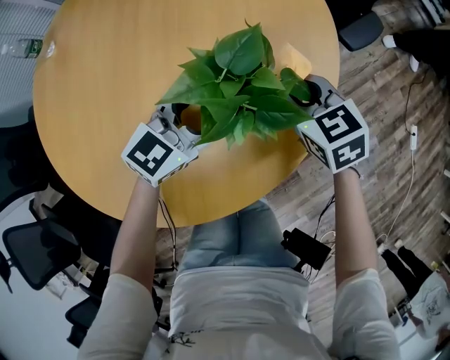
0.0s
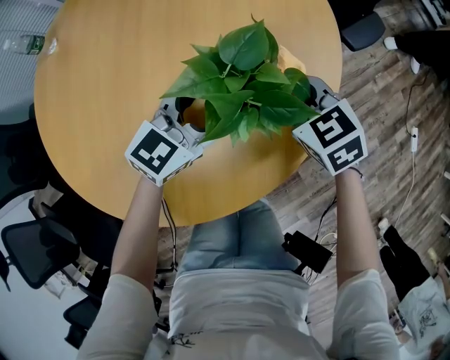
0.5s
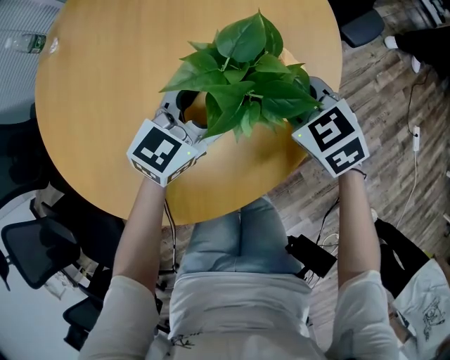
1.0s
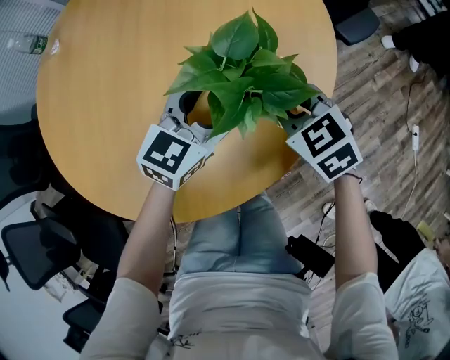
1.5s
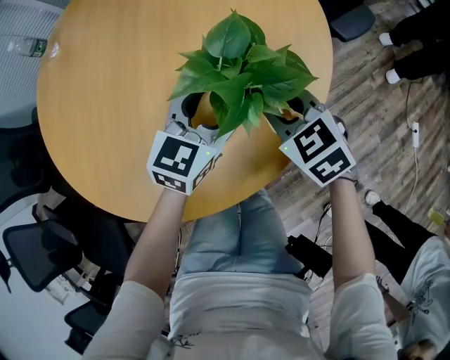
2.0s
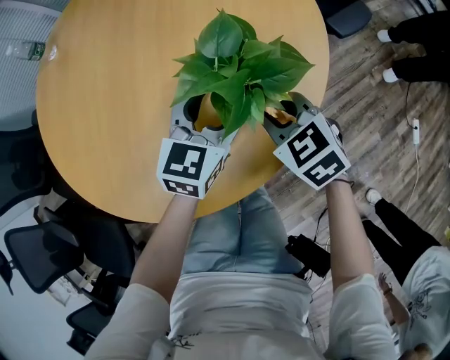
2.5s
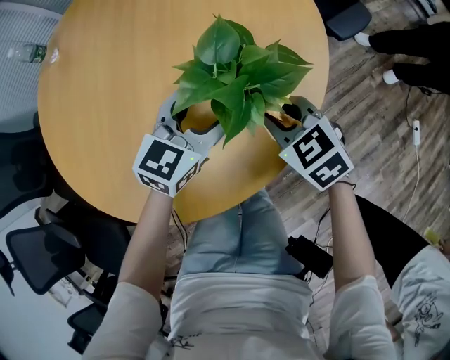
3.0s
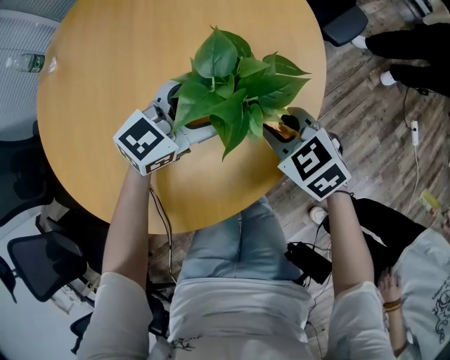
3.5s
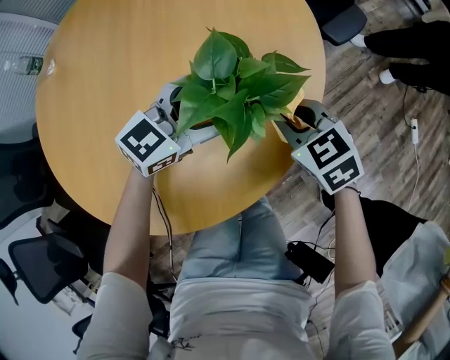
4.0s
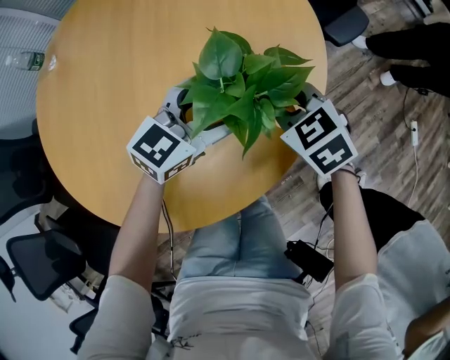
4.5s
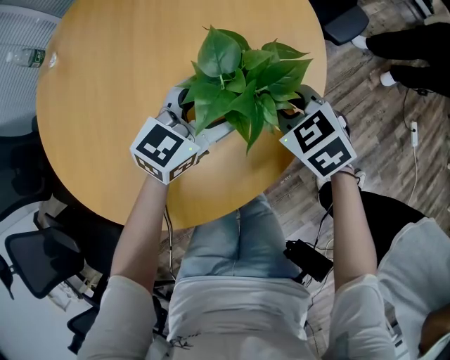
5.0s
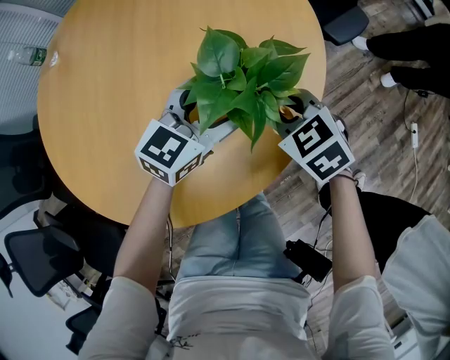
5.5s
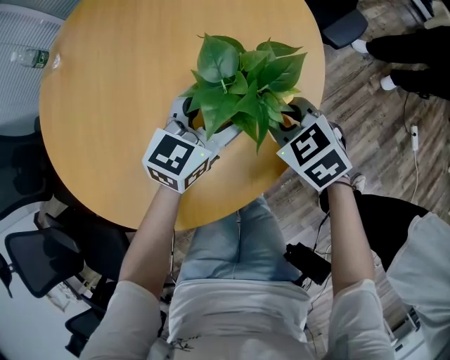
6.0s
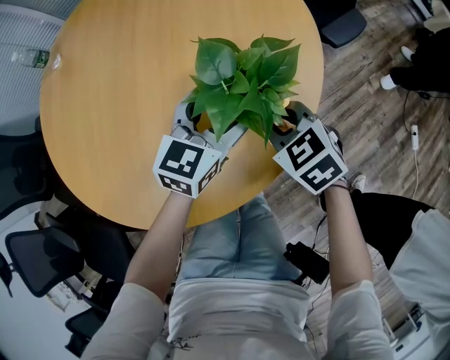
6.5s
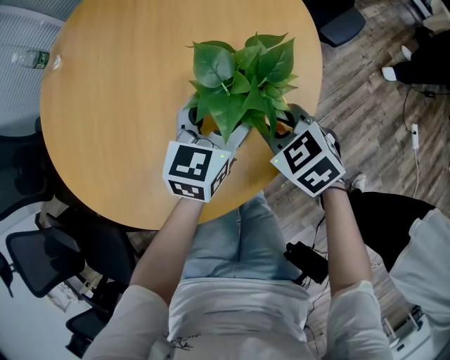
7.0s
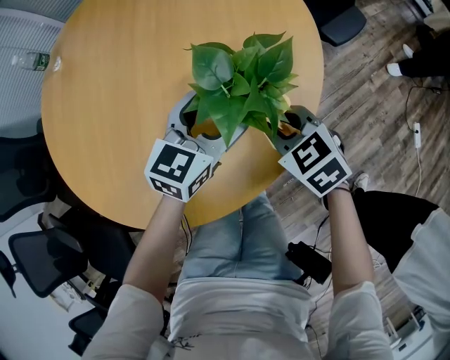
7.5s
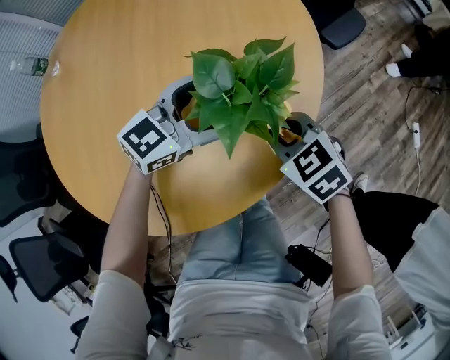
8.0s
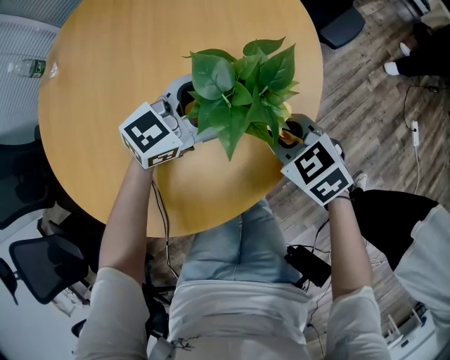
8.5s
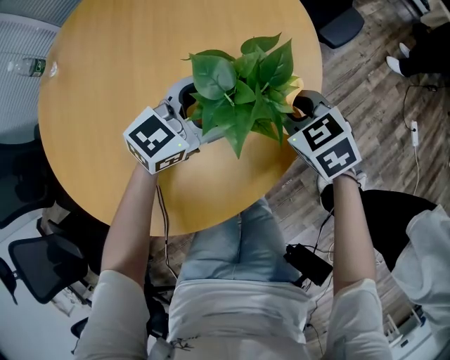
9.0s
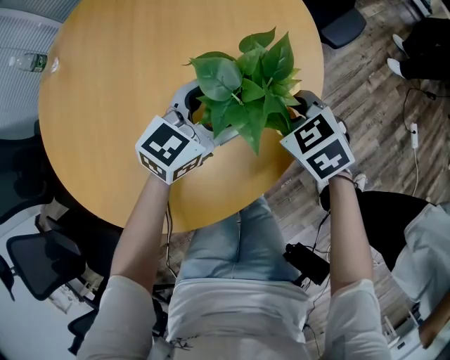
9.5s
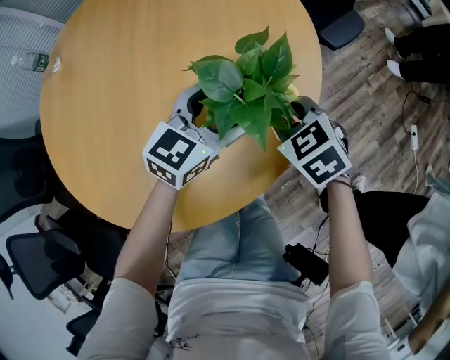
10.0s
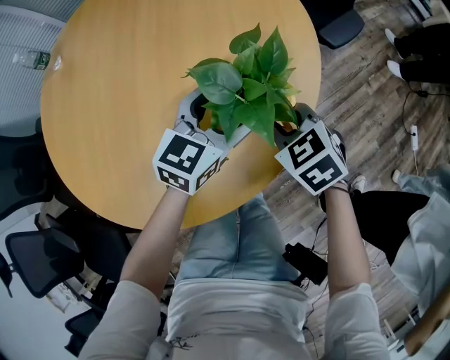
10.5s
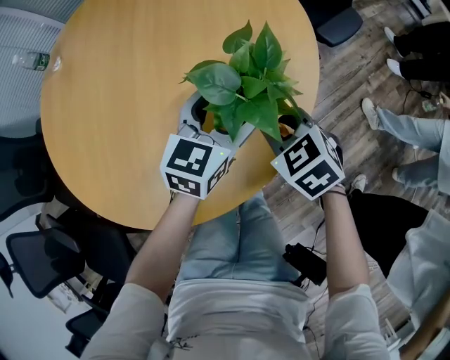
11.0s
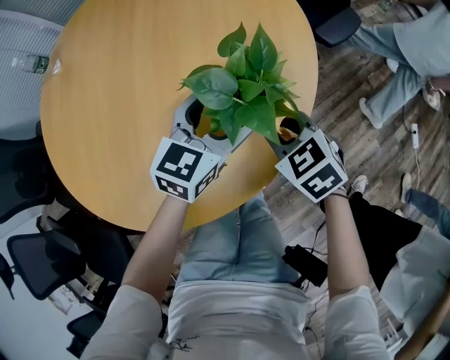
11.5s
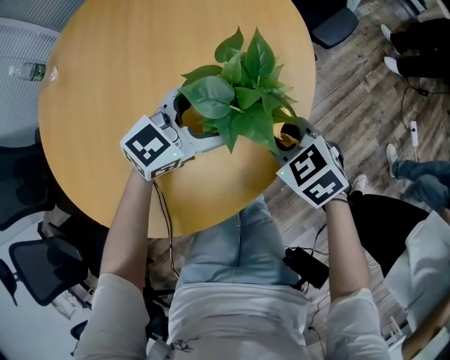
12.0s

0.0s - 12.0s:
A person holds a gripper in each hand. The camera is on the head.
0.0s - 2.0s: The right gripper shifts approximately 5 cm backward.
2.0s - 4.0s: The left gripper changes its angle by about 30 degrees.
4.0s - 6.0s: The grippers make only small movements.
6.0s - 8.0s: The left gripper swivels approximately 20 degrees.
8.0s - 10.0s: The grippers stay close to where they were, moving slightly.
10.0s - 12.0s: There are only small adjustments of the grippers.

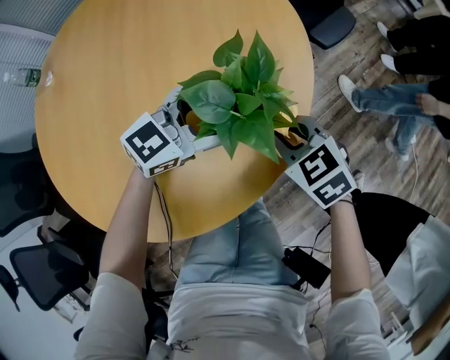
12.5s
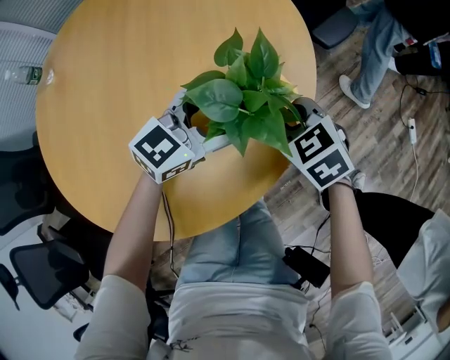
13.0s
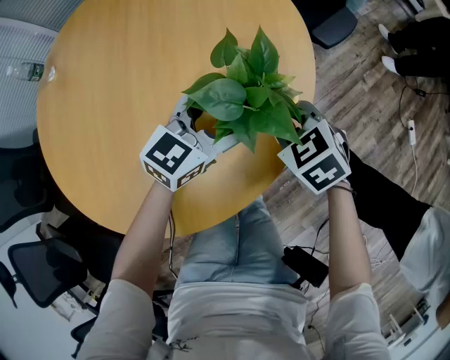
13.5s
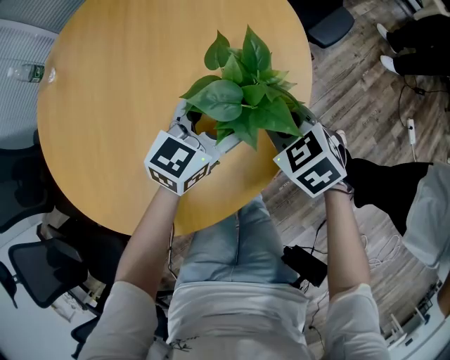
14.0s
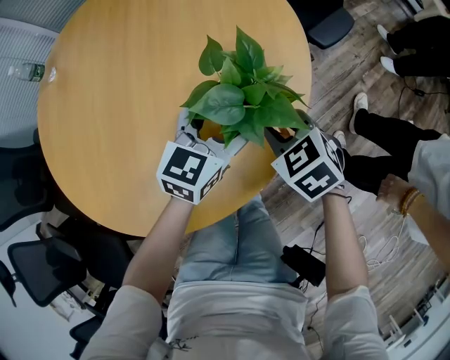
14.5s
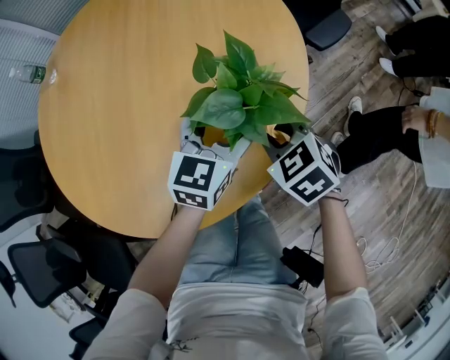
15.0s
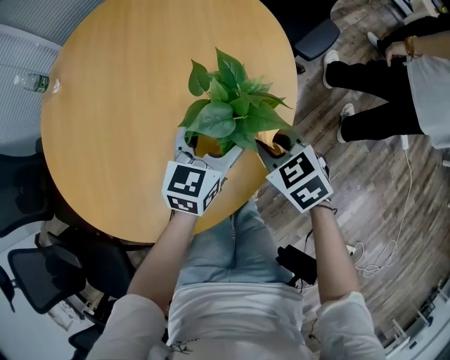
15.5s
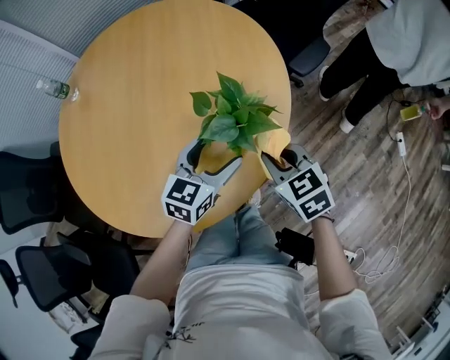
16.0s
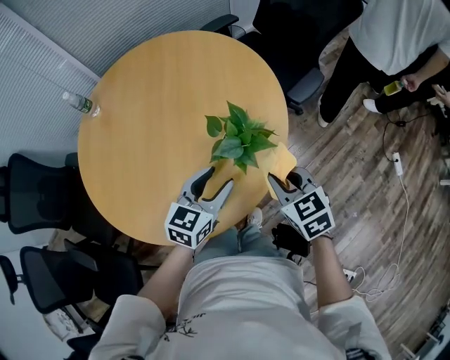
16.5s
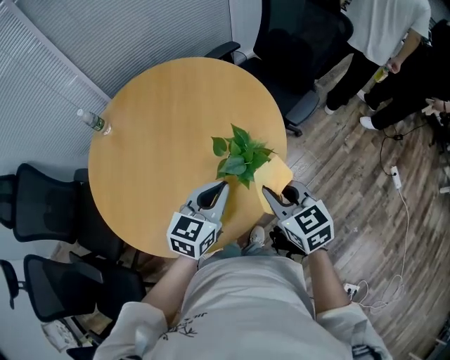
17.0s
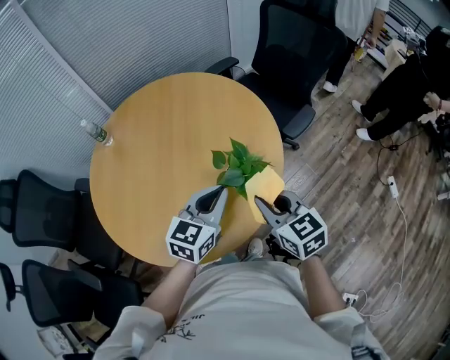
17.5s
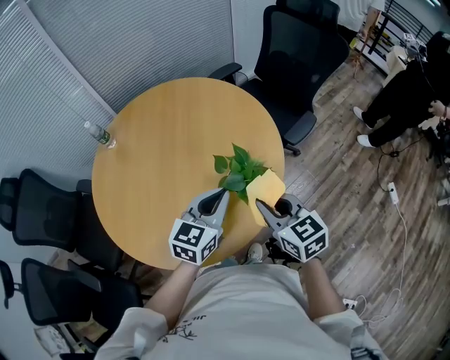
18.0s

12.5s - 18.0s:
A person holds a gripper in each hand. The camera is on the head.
12.5s - 14.5s: The left gripper changes its angle by roughly 30 degrees.
14.5s - 16.0s: The left gripper travels backward by some 5 cm, while the right gripper moves upward, some 10 cm.
16.0s - 18.0s: Both grippers move upward, about 15 cm. The left gripper closes its fingers.

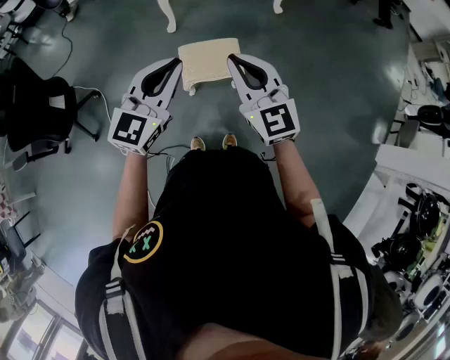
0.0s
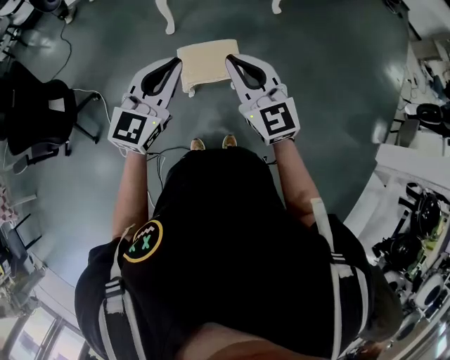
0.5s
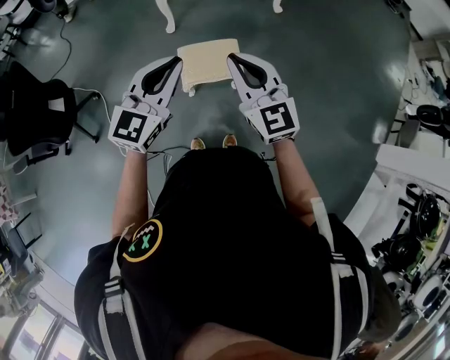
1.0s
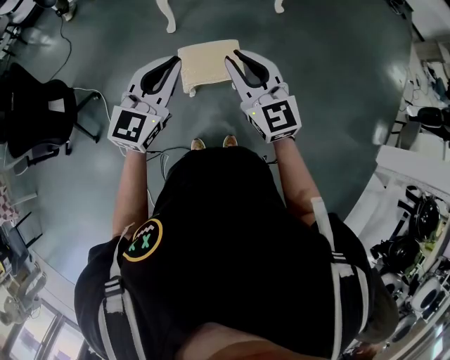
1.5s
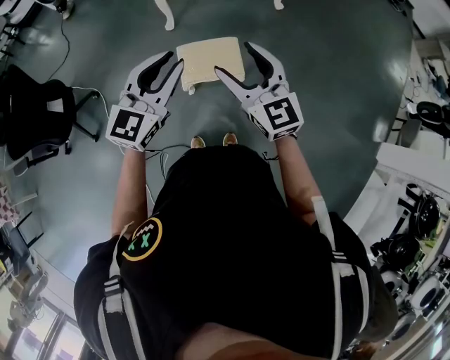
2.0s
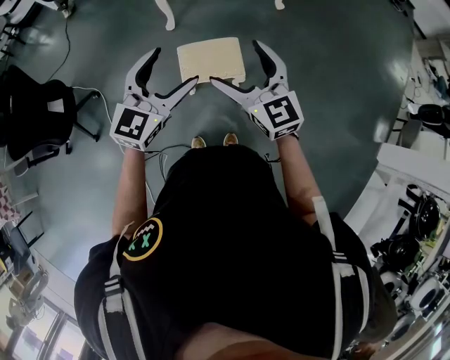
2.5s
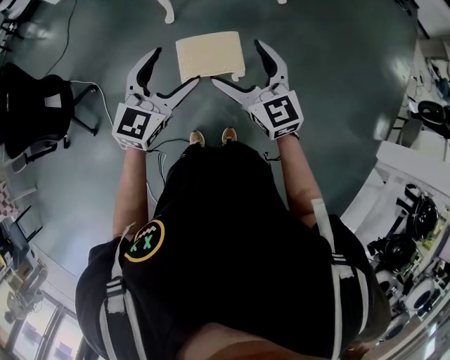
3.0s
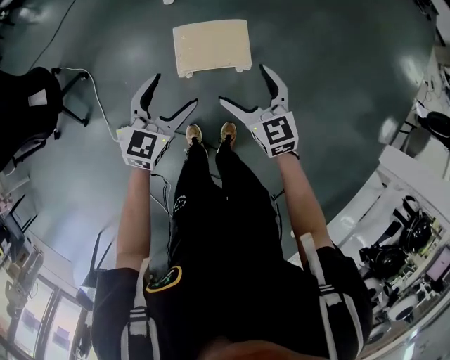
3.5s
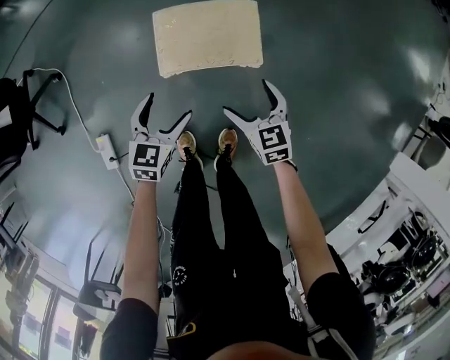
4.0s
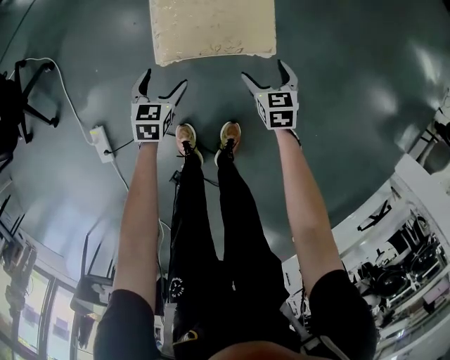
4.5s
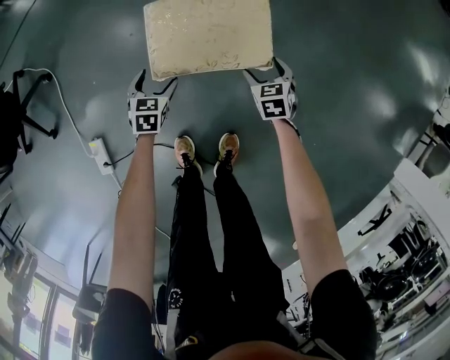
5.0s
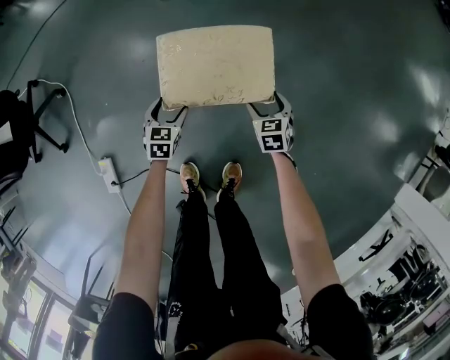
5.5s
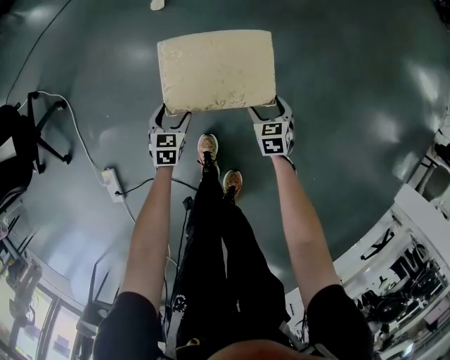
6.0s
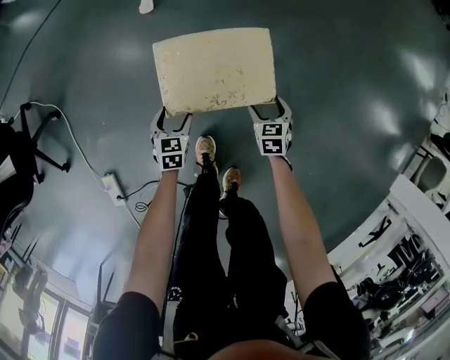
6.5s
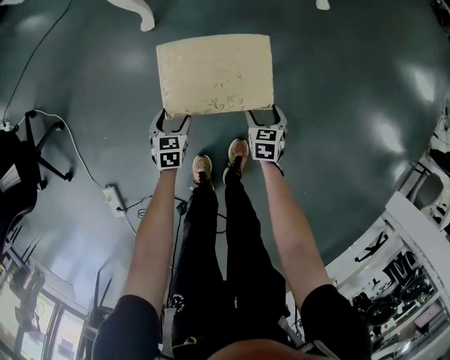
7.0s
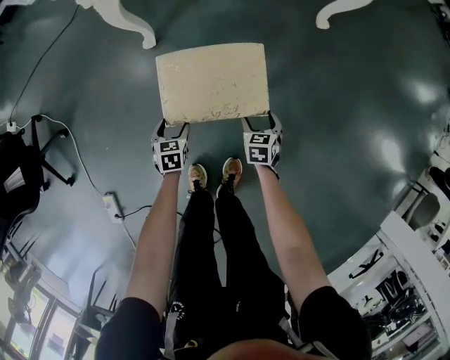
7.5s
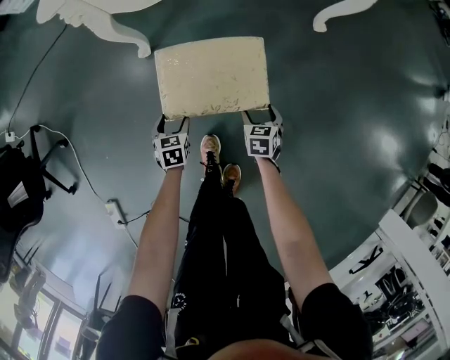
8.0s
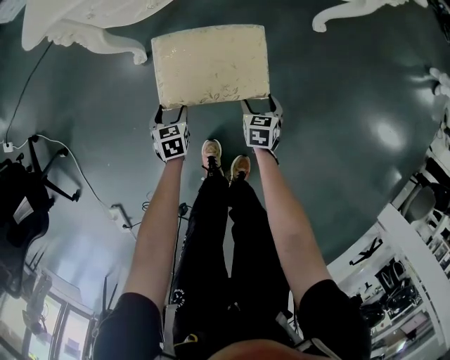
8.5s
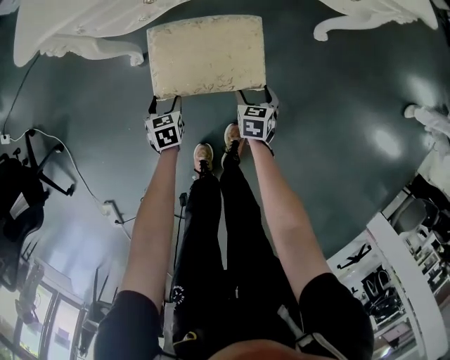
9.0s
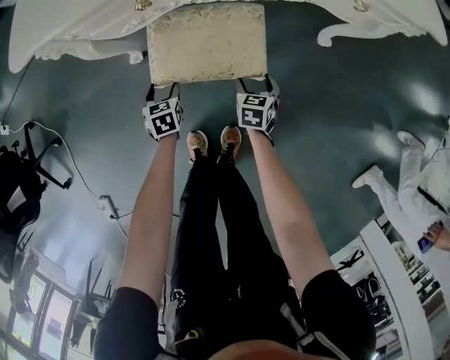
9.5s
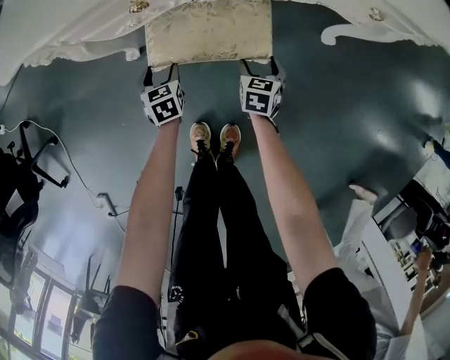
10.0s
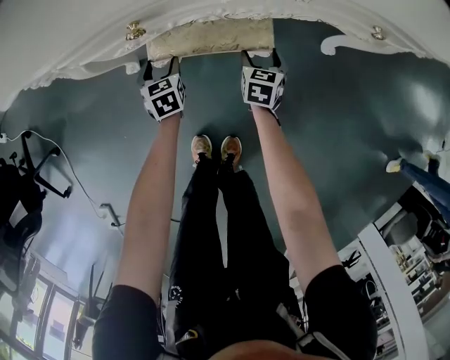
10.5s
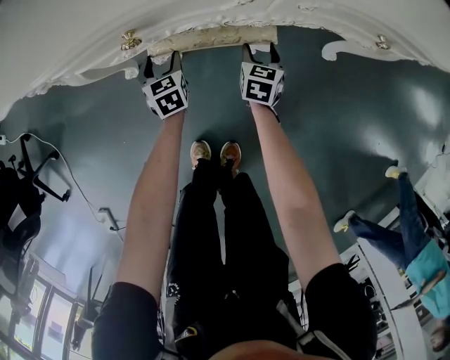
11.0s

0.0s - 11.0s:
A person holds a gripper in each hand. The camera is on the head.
0.0s - 2.0s: The grippers both shift forward by approximately 5 cm. The right gripper opens up.
2.0s - 3.5s: The grippers both shift downward by about 20 cm. The left gripper swivels some 20 degrees, and opens. The right gripper turns by about 20 degrees, and opens up.
3.5s - 5.5s: Both grippers move downward, roughly 50 cm. The left gripper changes its angle by about 30 degrees. The right gripper swivels approximately 30 degrees.
5.5s - 7.5s: The two grippers go about 25 cm forward.
7.5s - 9.0s: The grippers both shift forward by roughly 25 cm.
9.0s - 11.0s: Both grippers travel together forward, about 25 cm.
